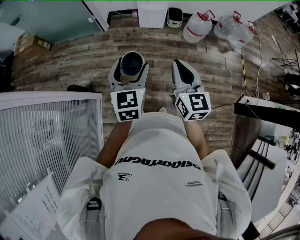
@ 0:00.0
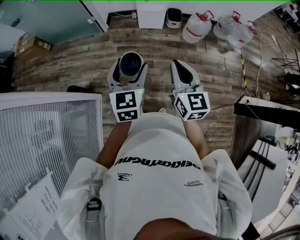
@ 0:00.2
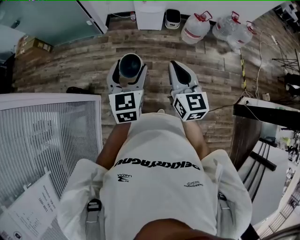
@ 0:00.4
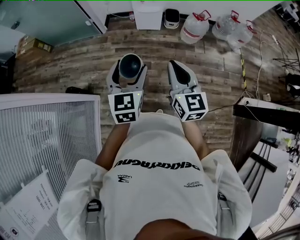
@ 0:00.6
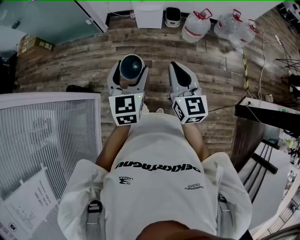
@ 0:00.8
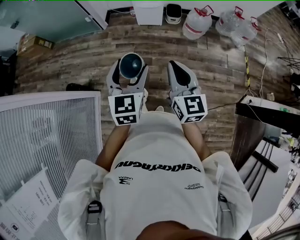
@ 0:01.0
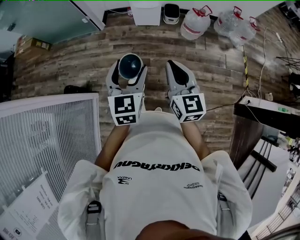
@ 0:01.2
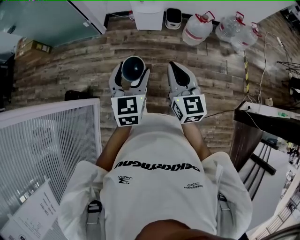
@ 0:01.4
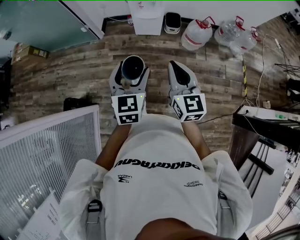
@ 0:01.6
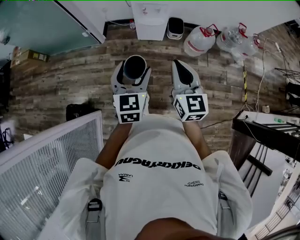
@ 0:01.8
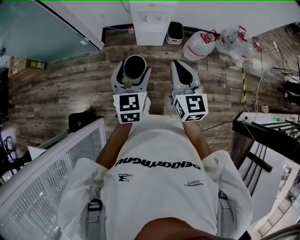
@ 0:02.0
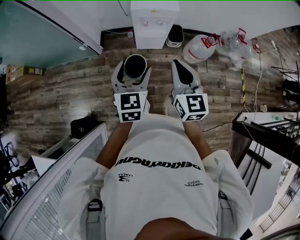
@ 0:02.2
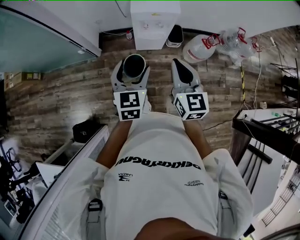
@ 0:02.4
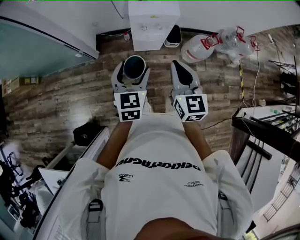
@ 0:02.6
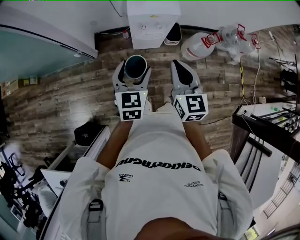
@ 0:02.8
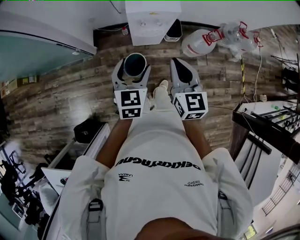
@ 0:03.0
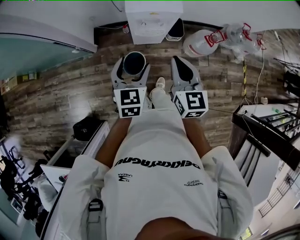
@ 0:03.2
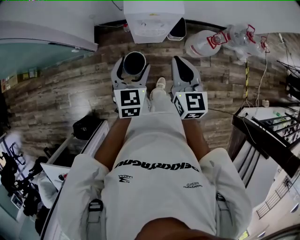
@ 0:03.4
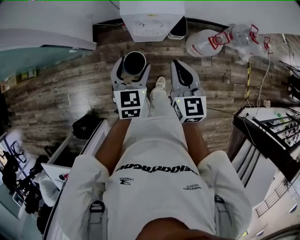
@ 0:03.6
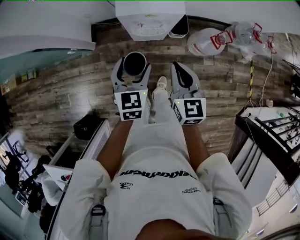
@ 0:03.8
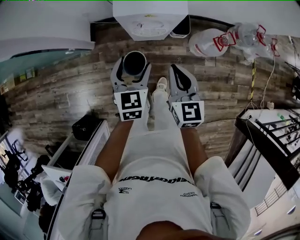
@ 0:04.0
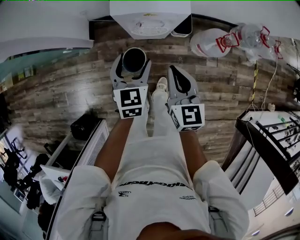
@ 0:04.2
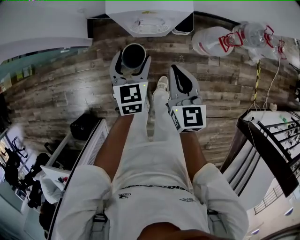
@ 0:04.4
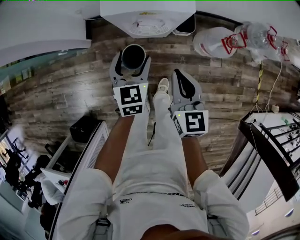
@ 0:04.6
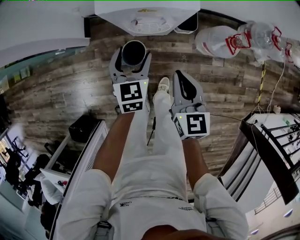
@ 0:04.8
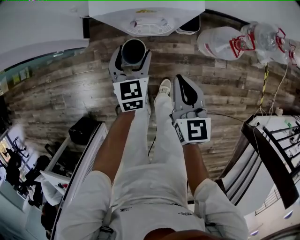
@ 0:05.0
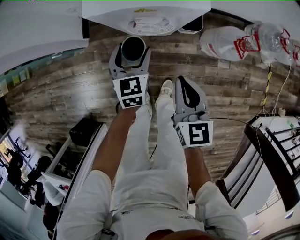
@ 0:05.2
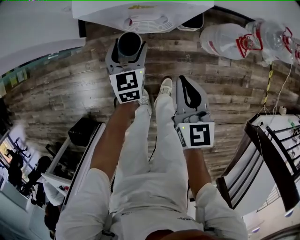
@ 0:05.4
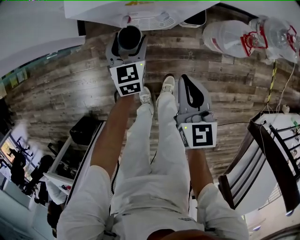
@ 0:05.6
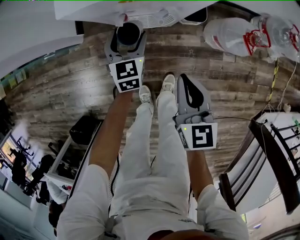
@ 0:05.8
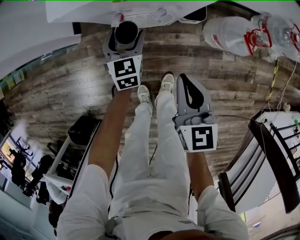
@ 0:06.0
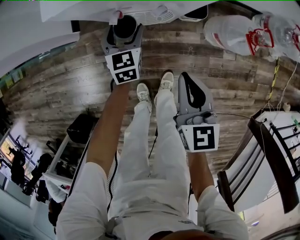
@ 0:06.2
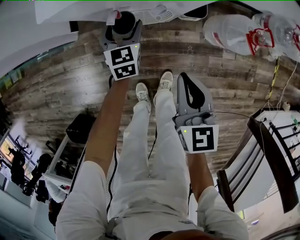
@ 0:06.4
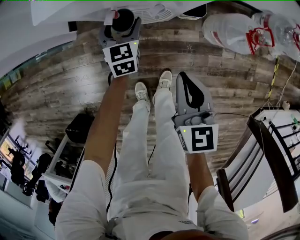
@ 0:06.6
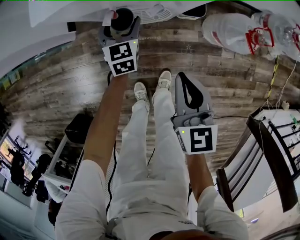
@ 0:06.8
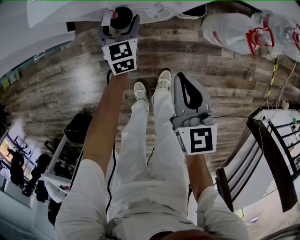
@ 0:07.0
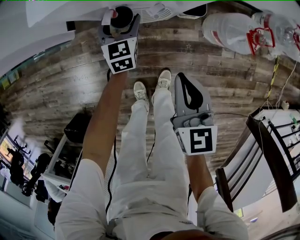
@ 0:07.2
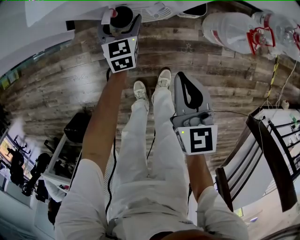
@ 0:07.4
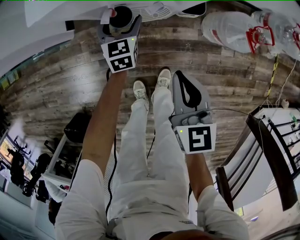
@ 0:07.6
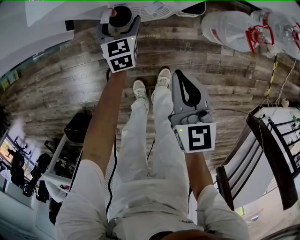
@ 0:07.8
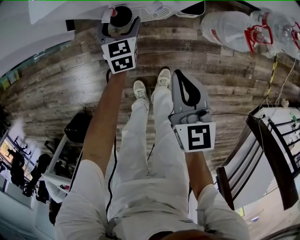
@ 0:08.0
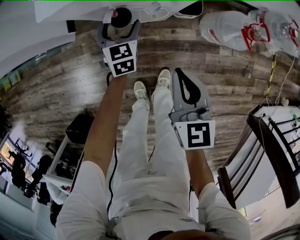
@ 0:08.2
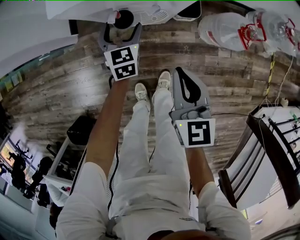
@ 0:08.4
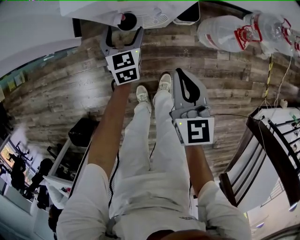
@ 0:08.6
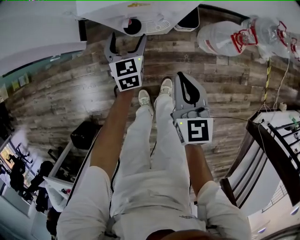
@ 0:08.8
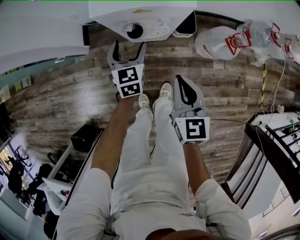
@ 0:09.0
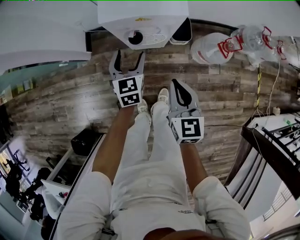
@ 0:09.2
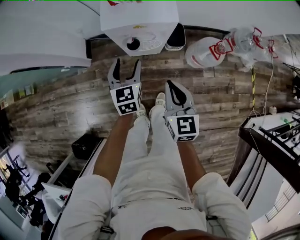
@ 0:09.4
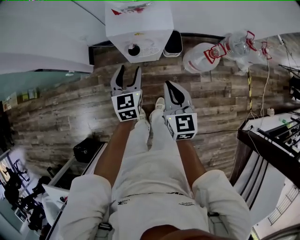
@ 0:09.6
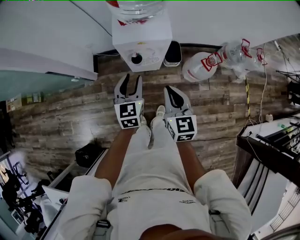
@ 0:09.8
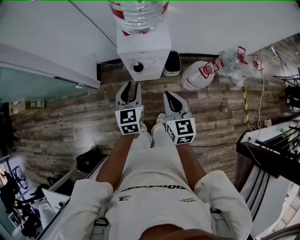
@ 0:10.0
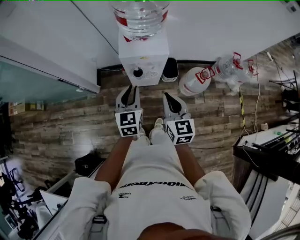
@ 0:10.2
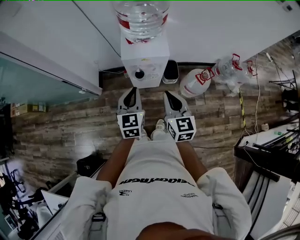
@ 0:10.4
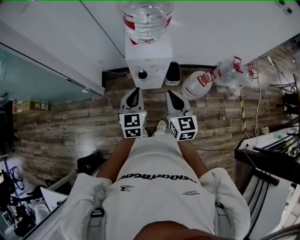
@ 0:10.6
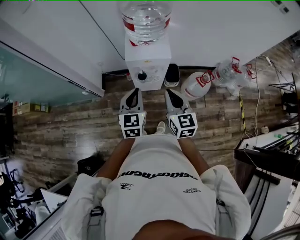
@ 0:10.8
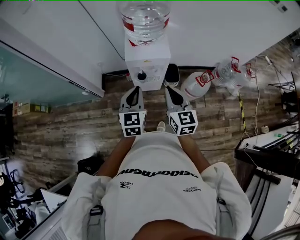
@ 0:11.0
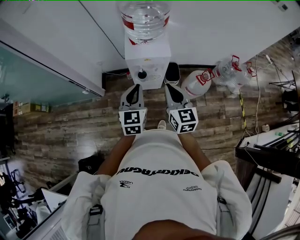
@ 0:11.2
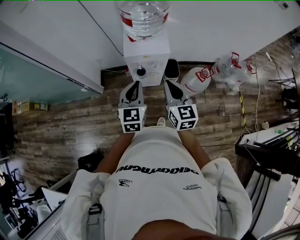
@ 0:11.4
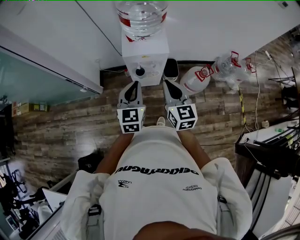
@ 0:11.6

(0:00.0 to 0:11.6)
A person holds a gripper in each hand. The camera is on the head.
0:00.0 - 0:01.4: Both grippers travel together to the right and forward, approximately 10 cm.
0:01.4 - 0:02.8: The pair of grippers is taken forward, about 50 cm.
0:02.8 - 0:04.4: Both grippers move downward and forward, approximately 30 cm.
0:04.4 - 0:05.8: The left gripper is displaced downward and forward by about 30 cm. The right gripper goes about 20 cm downward.
0:05.8 - 0:07.2: The left gripper heads downward, covering about 5 cm.
0:07.2 - 0:08.8: The left gripper moves upward and backward, about 15 cm, while the right gripper goes approximately 10 cm upward.
0:08.8 - 0:10.2: The right gripper goes roughly 30 cm upward, while the left gripper shifts approximately 40 cm upward and backward, and closes its fingers.
0:10.2 - 0:11.6: Both grippers move upward, some 5 cm.

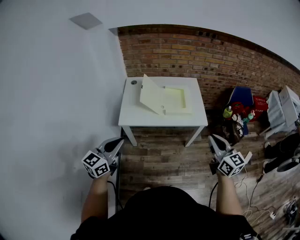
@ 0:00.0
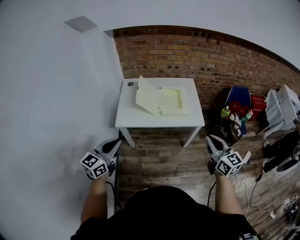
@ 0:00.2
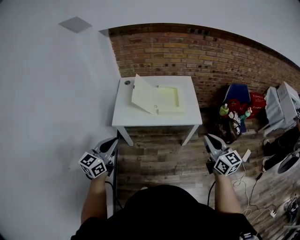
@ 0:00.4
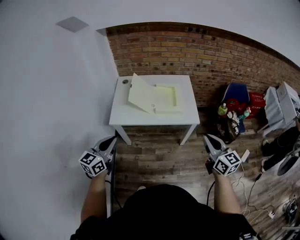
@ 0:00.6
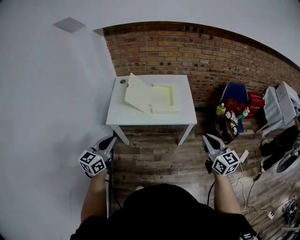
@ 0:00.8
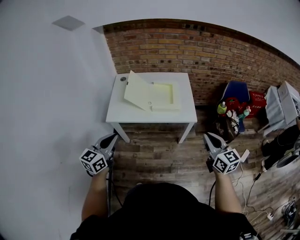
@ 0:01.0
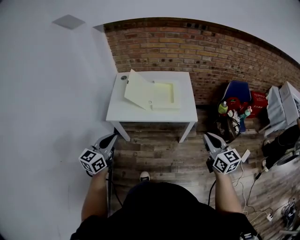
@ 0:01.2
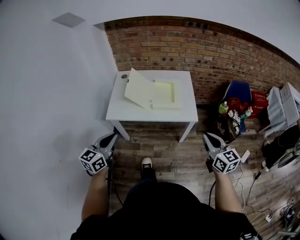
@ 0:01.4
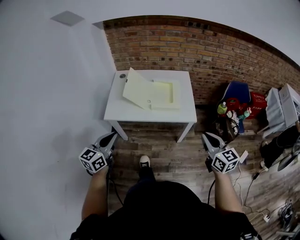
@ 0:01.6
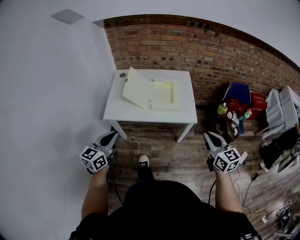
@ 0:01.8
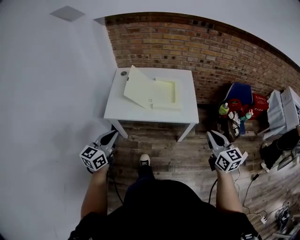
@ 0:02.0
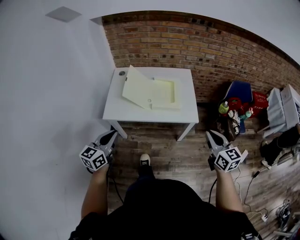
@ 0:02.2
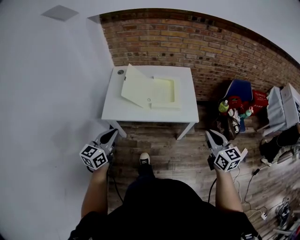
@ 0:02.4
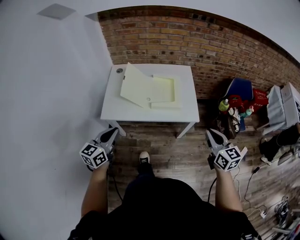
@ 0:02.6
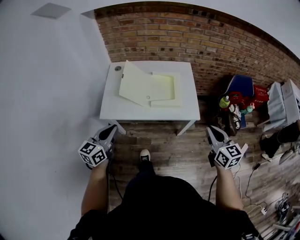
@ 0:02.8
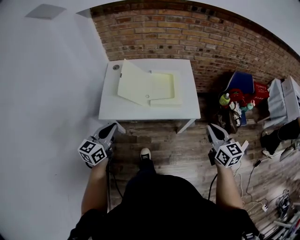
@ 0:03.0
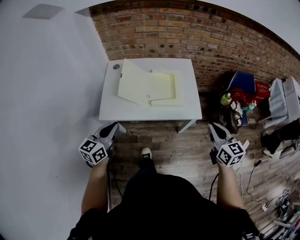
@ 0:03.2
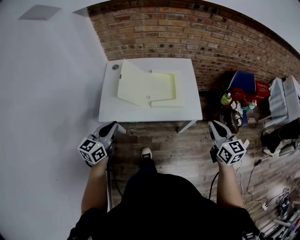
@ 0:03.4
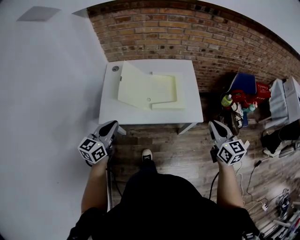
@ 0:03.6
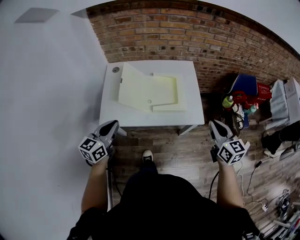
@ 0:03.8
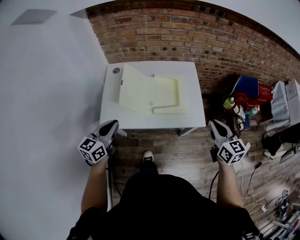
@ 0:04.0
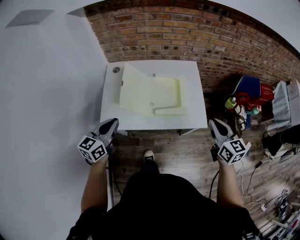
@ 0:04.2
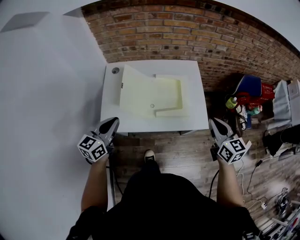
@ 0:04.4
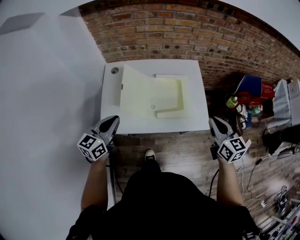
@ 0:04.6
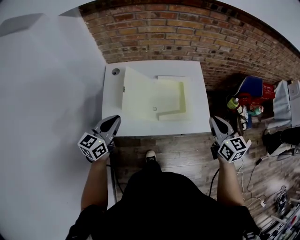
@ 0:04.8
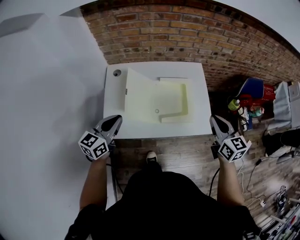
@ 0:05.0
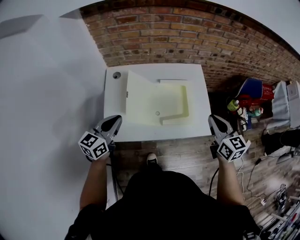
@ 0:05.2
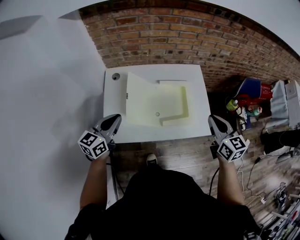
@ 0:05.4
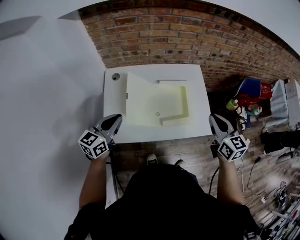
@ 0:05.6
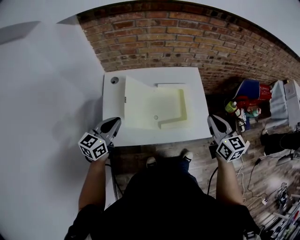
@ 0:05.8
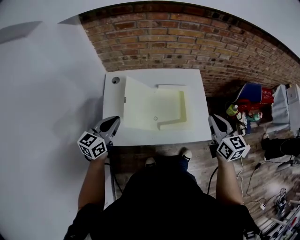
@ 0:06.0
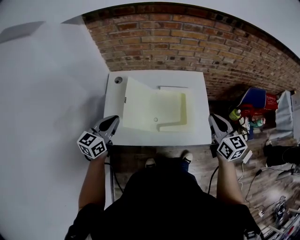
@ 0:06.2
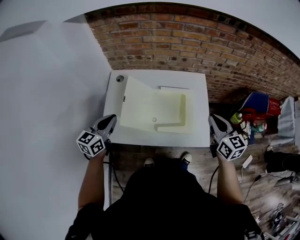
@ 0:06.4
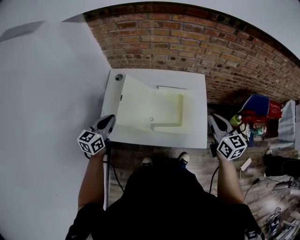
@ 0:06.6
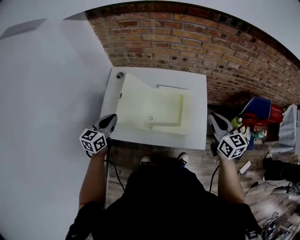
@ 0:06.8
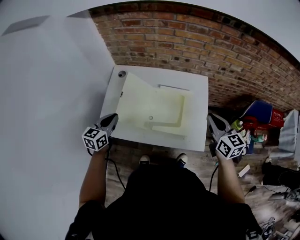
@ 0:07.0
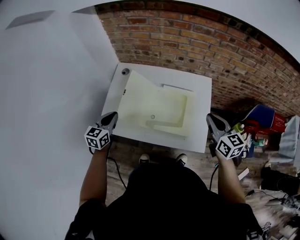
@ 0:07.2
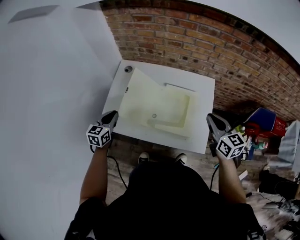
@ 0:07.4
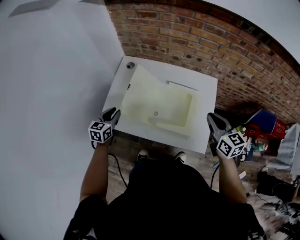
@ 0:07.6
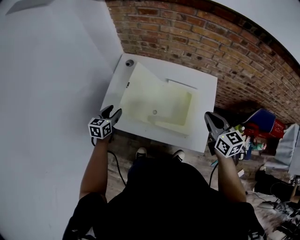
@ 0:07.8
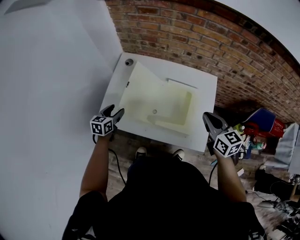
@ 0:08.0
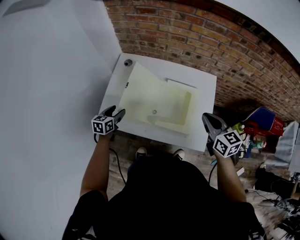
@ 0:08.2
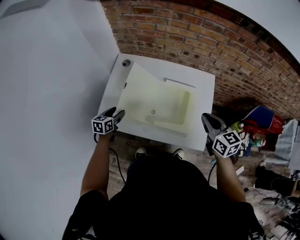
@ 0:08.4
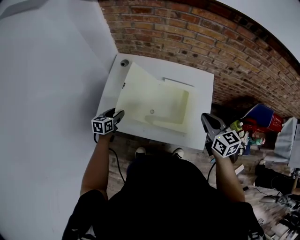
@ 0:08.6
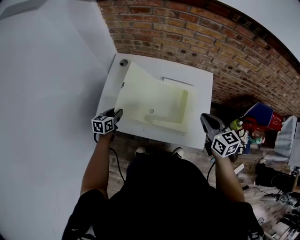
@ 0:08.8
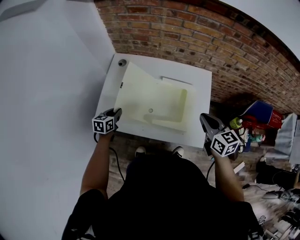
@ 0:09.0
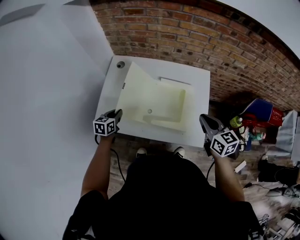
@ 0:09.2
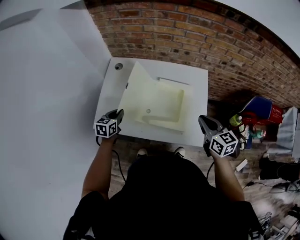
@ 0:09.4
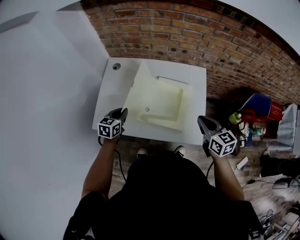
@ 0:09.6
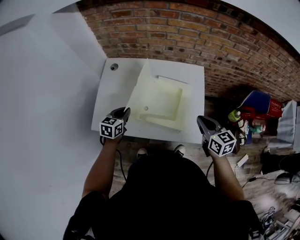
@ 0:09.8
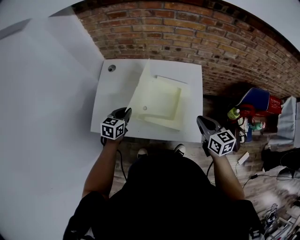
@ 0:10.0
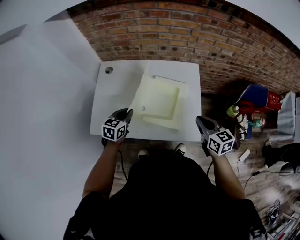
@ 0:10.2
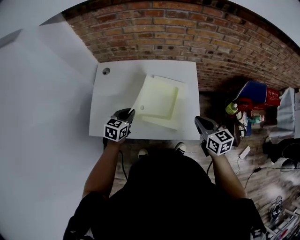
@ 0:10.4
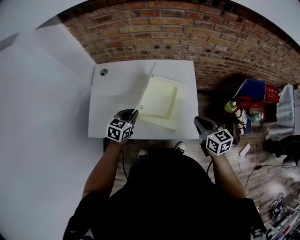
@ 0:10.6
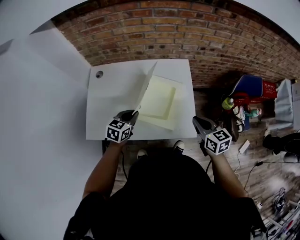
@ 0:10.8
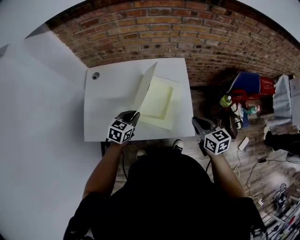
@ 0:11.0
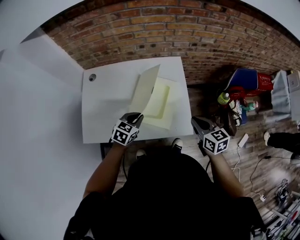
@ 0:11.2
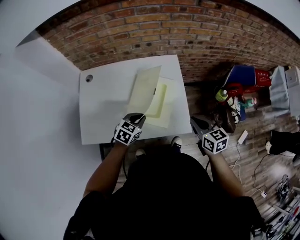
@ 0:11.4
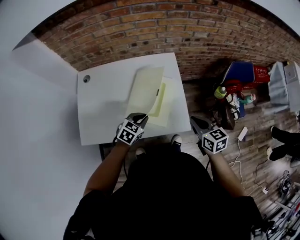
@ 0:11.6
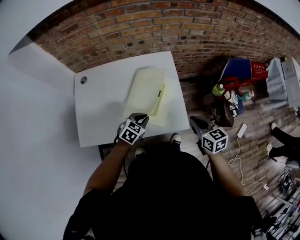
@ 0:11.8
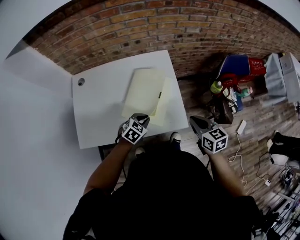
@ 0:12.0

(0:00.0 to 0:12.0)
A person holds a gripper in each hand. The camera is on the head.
0:00.0 - 0:01.6: The left gripper moves to the right, about 10 cm; the right gripper travels to the right and downward by some 10 cm.
0:01.6 - 0:03.0: Both grippers travel together forward, roughly 10 cm.
0:03.0 - 0:04.4: Both grippers move forward, about 15 cm.
0:04.4 - 0:06.0: The right gripper goes about 10 cm forward and to the left, while the left gripper shifts roughly 10 cm forward.
0:06.0 - 0:07.6: The right gripper shifts by some 10 cm, and rotates roughly 20 degrees, while the left gripper travels downward by some 10 cm, and rotates about 30 degrees.
0:07.6 - 0:09.0: The left gripper heads downward, covering roughly 10 cm, and opens, then closes once more.
0:09.0 - 0:10.4: The left gripper shifts about 20 cm to the right and upward, and swivels roughly 20 degrees; the right gripper is displaced to the right by approximately 5 cm.
0:10.4 - 0:12.0: The left gripper shifts approximately 20 cm to the right, and rotates approximately 40 degrees. Meanwhile the right gripper travels to the right by approximately 5 cm.
